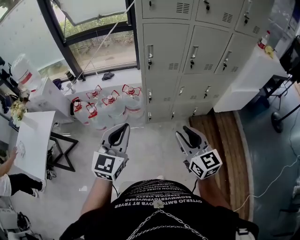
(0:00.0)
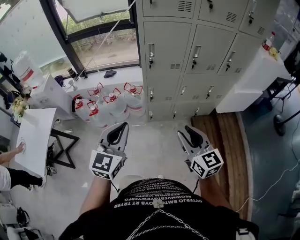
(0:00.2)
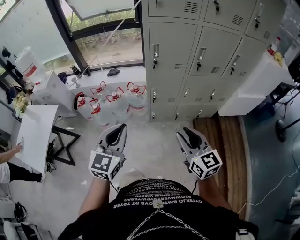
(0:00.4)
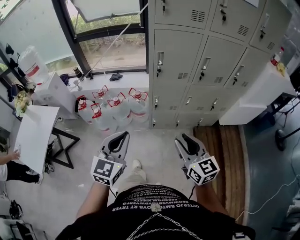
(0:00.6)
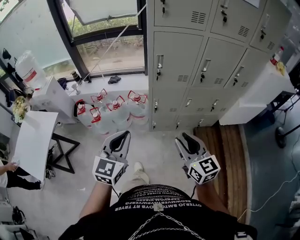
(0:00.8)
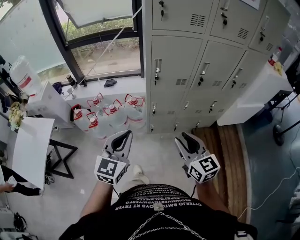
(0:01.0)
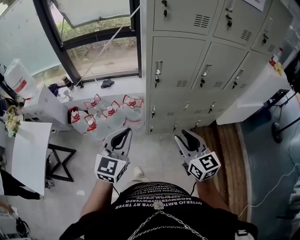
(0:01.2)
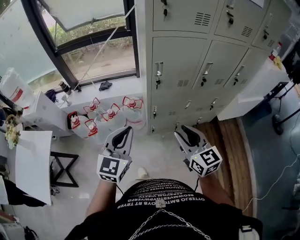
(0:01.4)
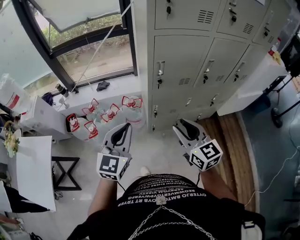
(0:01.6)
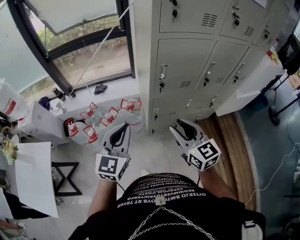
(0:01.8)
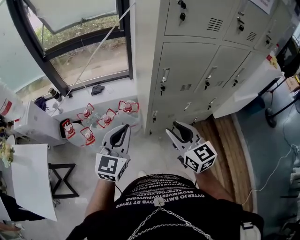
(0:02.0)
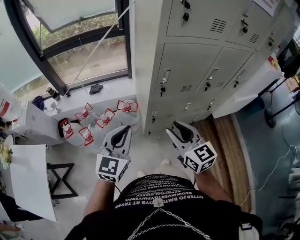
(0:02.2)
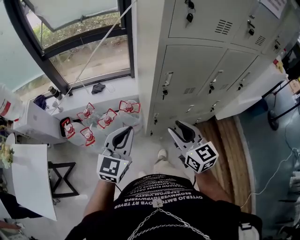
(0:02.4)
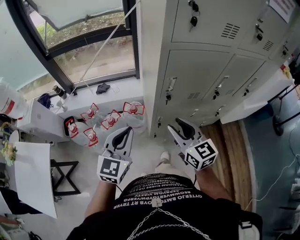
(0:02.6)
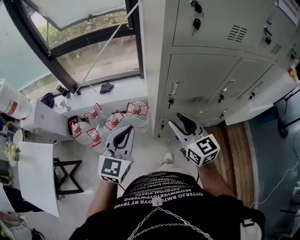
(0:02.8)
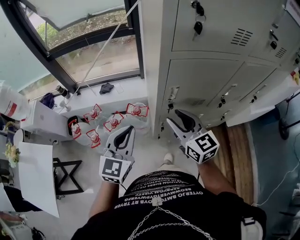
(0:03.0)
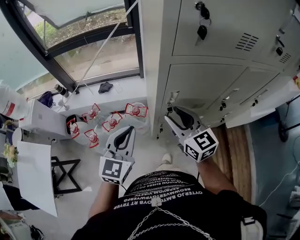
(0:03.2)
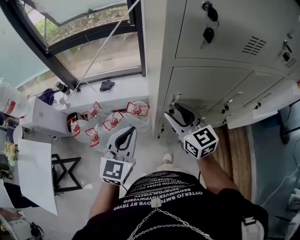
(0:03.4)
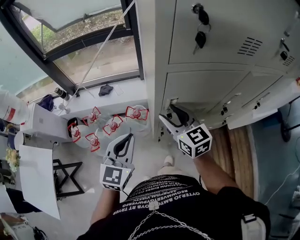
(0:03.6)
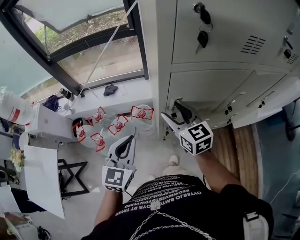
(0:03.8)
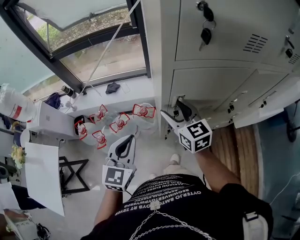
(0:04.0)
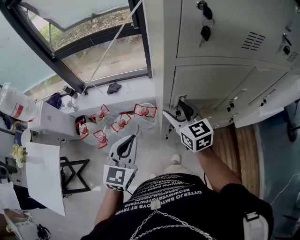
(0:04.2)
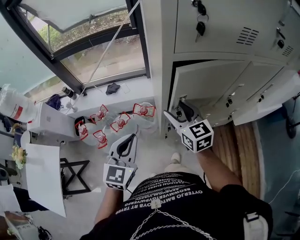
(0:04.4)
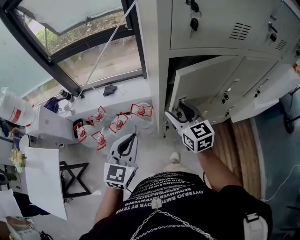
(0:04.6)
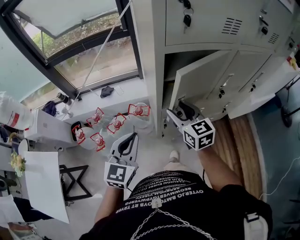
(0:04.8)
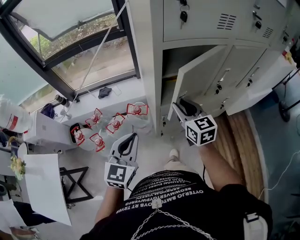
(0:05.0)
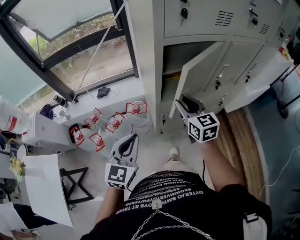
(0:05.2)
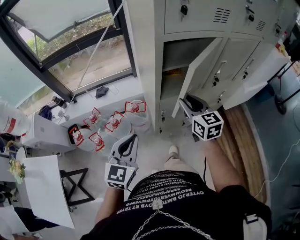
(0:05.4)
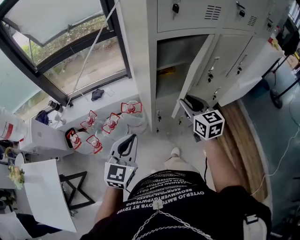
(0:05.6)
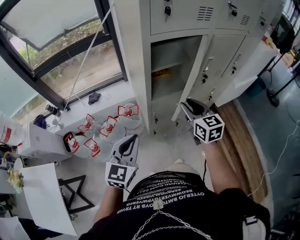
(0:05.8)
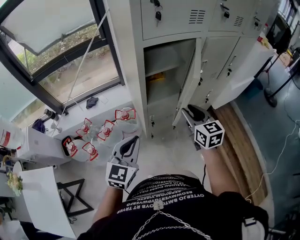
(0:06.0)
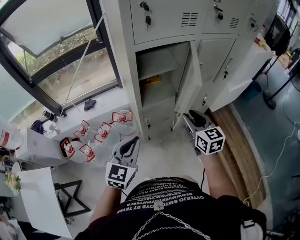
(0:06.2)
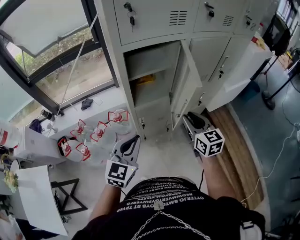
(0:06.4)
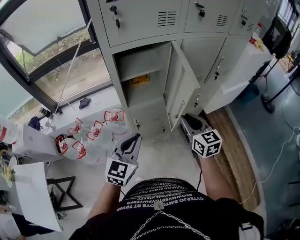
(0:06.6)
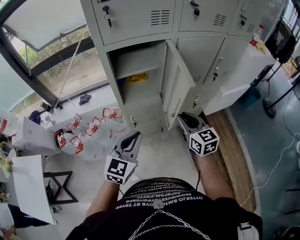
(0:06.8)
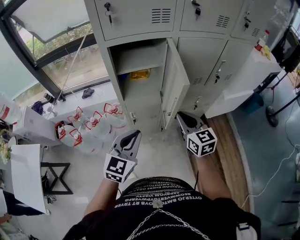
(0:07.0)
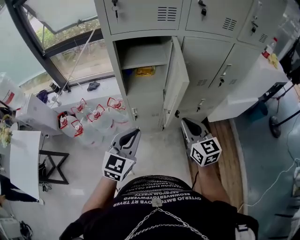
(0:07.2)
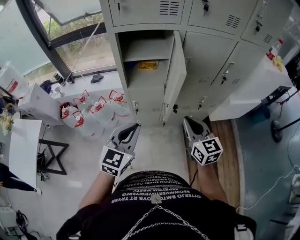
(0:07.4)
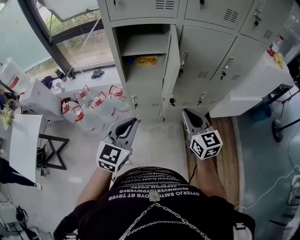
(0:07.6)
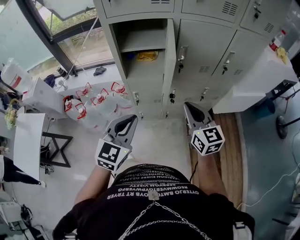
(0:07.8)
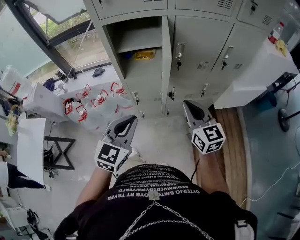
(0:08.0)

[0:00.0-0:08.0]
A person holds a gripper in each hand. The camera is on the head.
0:00.0 to 0:01.6: Both grippers move forward, some 25 cm.
0:01.6 to 0:03.2: The grippers both shift forward by roughly 20 cm.
0:03.2 to 0:04.8: The left gripper goes some 5 cm backward.
0:04.8 to 0:06.4: The right gripper shifts roughly 20 cm to the right and backward, and closes up. The left gripper goes about 15 cm to the right and backward.
0:06.4 to 0:08.0: The right gripper shifts roughly 15 cm to the right, and closes its fingers, while the left gripper travels to the right and backward by approximately 20 cm.

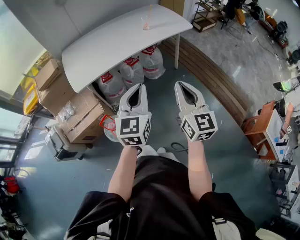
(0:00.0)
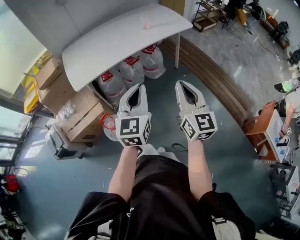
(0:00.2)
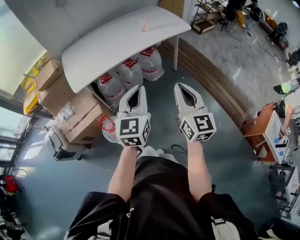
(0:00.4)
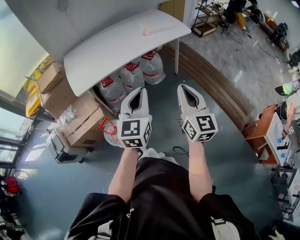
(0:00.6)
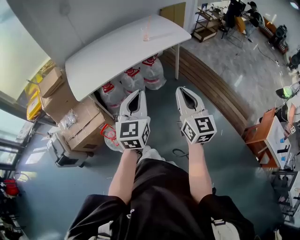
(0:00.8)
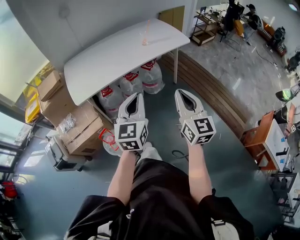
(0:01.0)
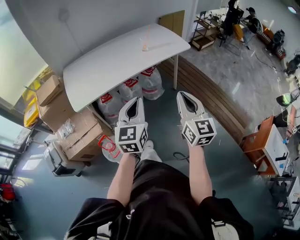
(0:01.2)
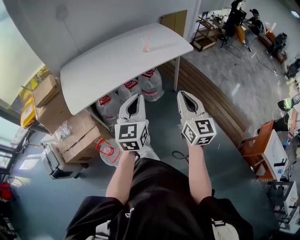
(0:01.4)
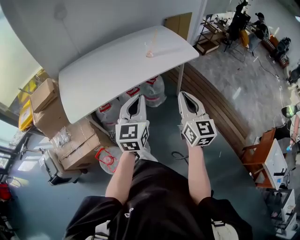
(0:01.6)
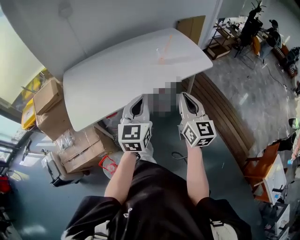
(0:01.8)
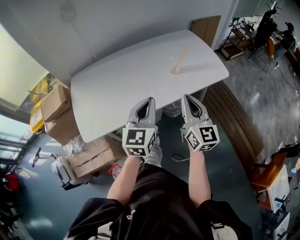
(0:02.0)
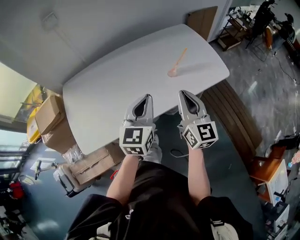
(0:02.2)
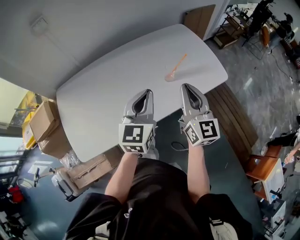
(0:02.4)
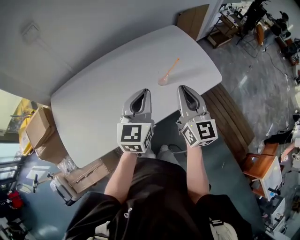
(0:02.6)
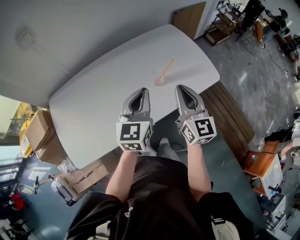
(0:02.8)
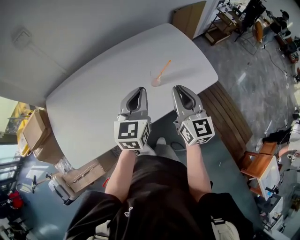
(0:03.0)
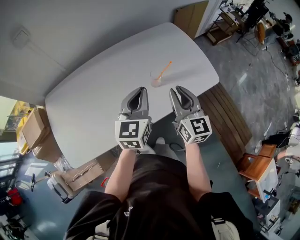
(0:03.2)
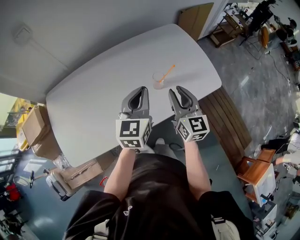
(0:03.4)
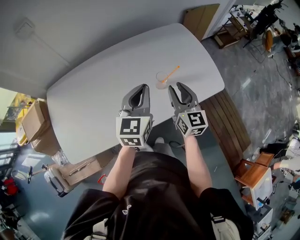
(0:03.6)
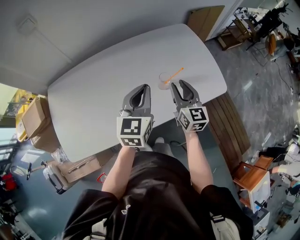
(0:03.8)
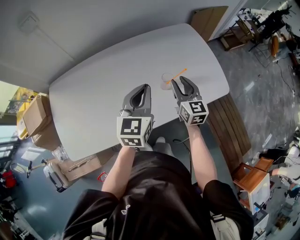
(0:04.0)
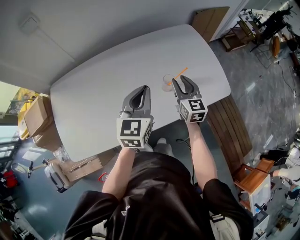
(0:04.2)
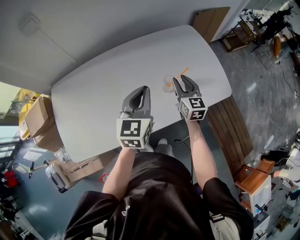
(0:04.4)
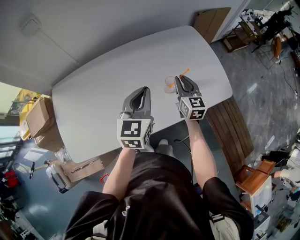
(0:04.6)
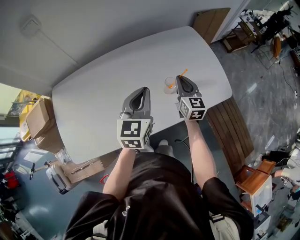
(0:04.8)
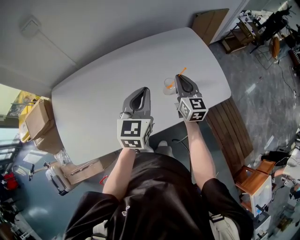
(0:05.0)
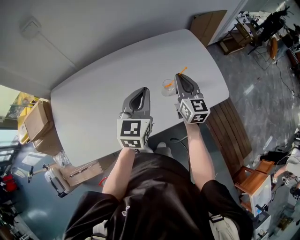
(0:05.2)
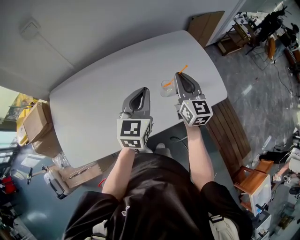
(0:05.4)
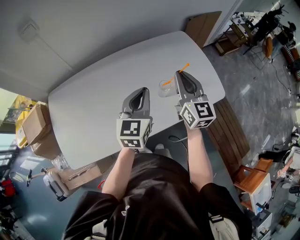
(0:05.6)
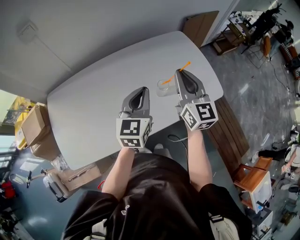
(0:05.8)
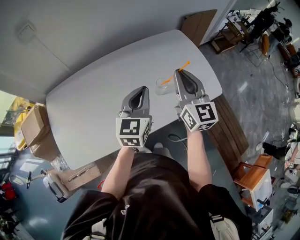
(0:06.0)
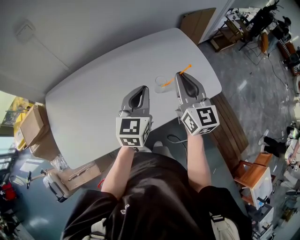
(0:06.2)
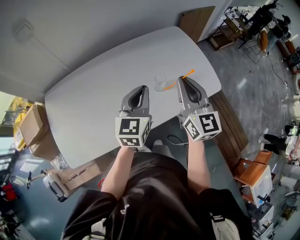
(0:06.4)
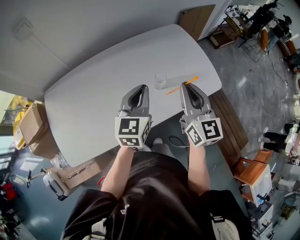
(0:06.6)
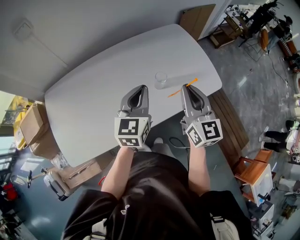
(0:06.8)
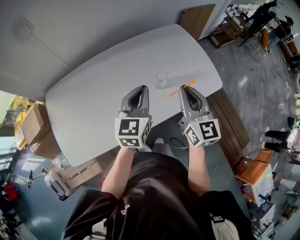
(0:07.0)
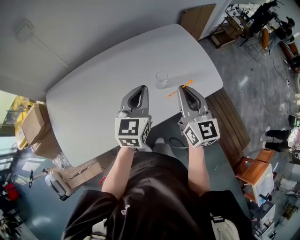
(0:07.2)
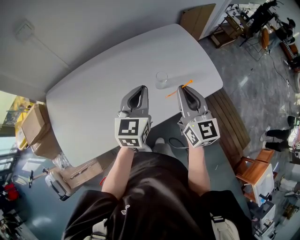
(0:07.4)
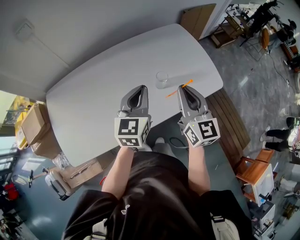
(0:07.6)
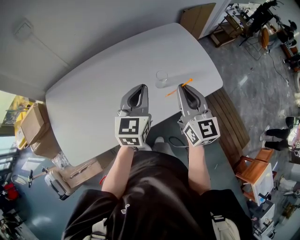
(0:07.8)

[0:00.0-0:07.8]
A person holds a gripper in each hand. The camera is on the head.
0:00.0 to 0:01.6: The two grippers go some 20 cm forward.
0:01.6 to 0:03.2: The two grippers travel together, forward, some 40 cm.
0:03.2 to 0:04.6: The right gripper heads forward and downward, covering some 15 cm, while the left gripper shifts by some 5 cm.
0:04.6 to 0:06.2: The right gripper goes some 15 cm upward.
0:06.2 to 0:07.8: The right gripper heads backward, covering roughly 5 cm.

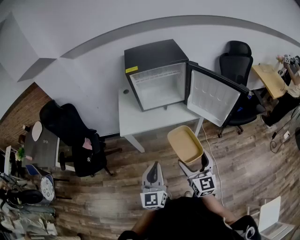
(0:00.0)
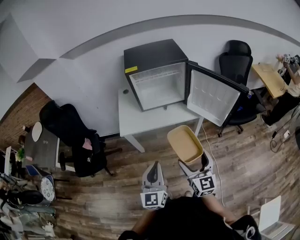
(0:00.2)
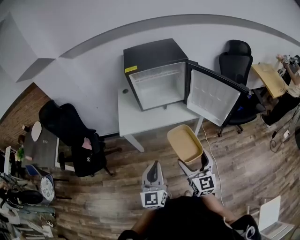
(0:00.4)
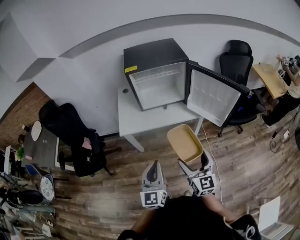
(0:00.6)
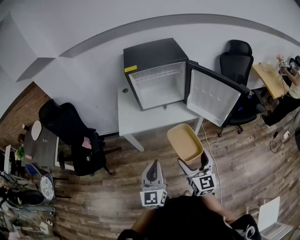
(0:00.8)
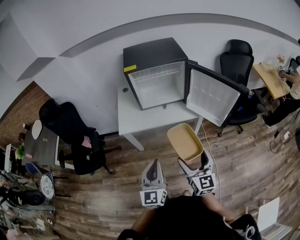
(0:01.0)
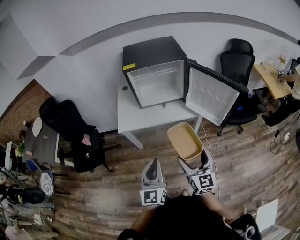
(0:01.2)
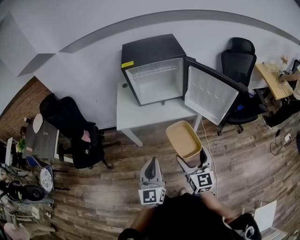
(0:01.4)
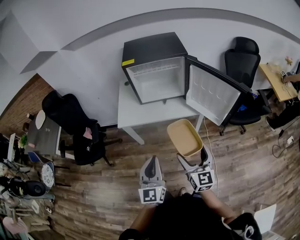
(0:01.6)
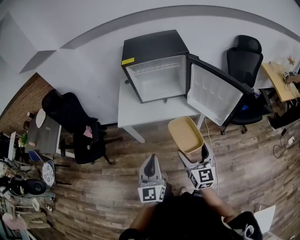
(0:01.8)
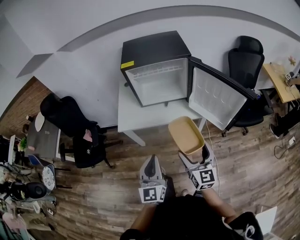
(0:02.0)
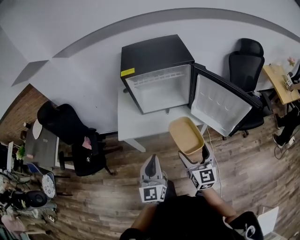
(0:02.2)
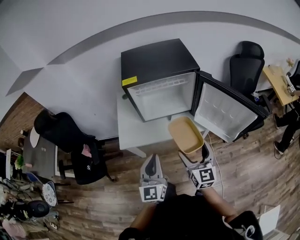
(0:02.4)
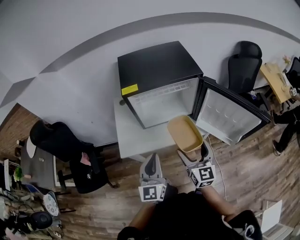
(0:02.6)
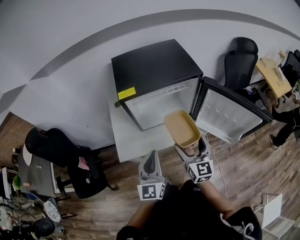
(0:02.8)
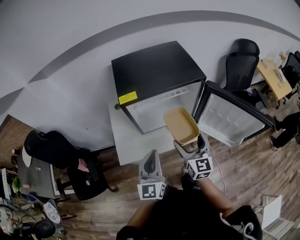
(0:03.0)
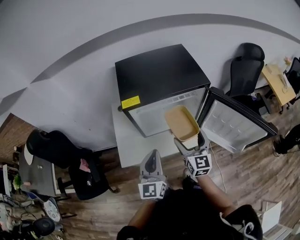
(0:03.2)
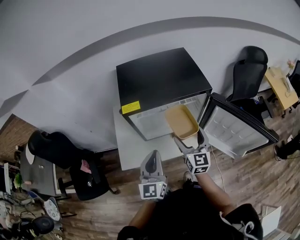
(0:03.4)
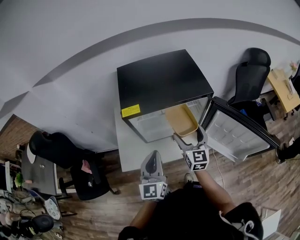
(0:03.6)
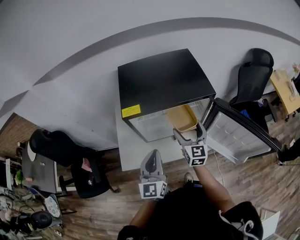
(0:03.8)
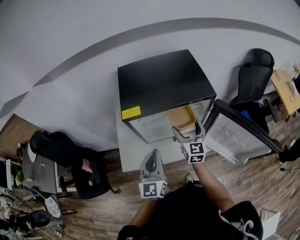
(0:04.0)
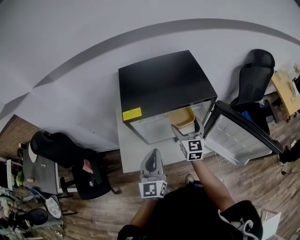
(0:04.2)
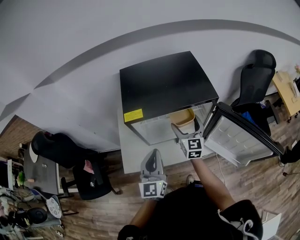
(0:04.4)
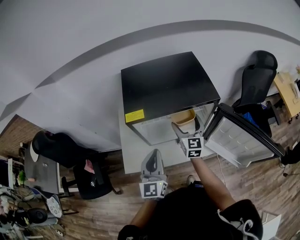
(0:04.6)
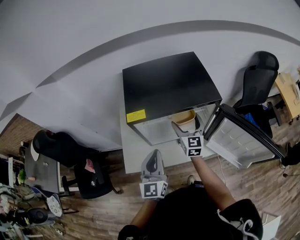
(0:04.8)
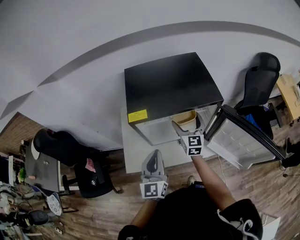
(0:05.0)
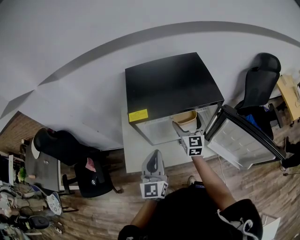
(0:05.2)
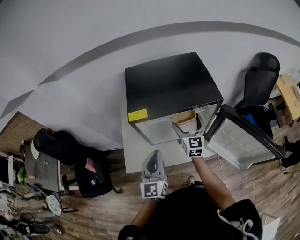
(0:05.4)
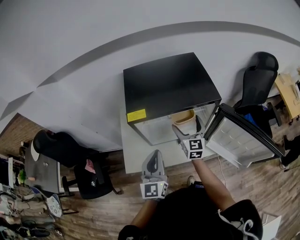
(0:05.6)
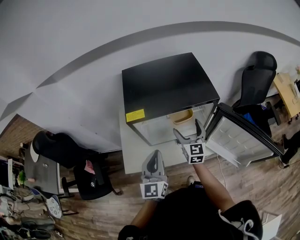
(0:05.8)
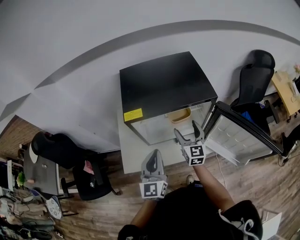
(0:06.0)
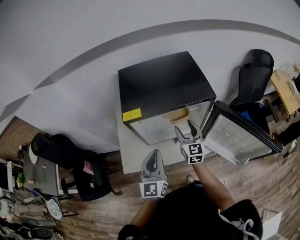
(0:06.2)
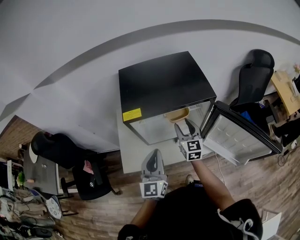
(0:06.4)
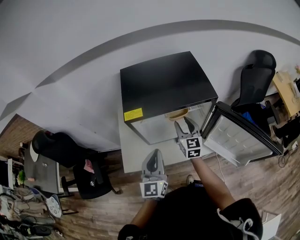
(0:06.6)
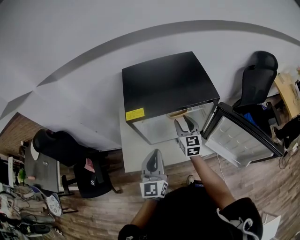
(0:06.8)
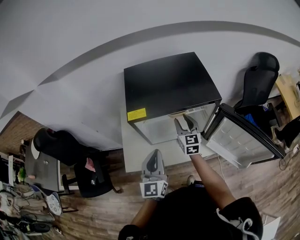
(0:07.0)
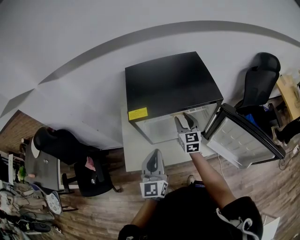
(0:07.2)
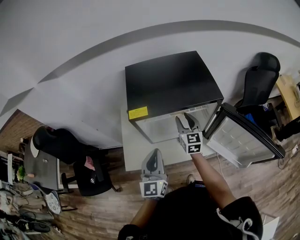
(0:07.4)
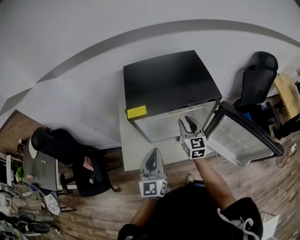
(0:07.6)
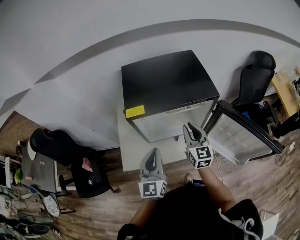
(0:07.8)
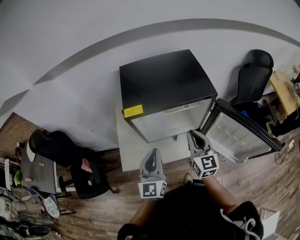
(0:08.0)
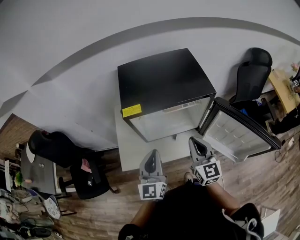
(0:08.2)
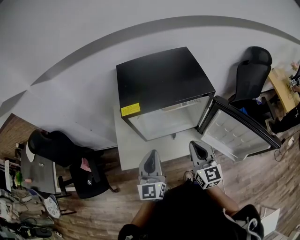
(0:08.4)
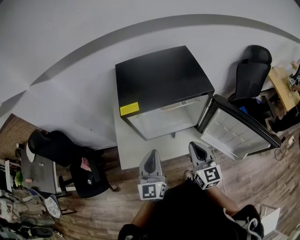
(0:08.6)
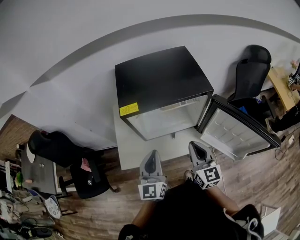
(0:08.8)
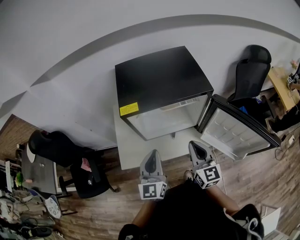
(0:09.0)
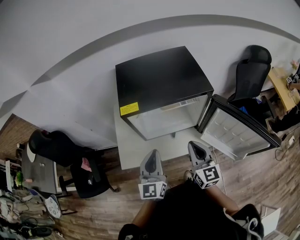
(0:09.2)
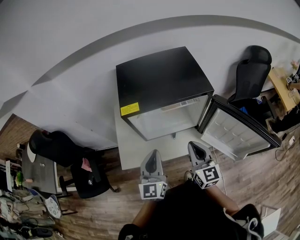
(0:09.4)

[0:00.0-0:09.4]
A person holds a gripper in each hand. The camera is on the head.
0:00.0 to 0:01.6: Both grippers travel together to the right, approximately 5 cm.
0:01.6 to 0:03.2: The two grippers go roughly 35 cm forward.
0:03.2 to 0:04.8: The right gripper moves forward, roughly 15 cm. The left gripper travels forward by about 5 cm.
0:04.8 to 0:06.2: The right gripper closes its fingers.
0:06.2 to 0:07.8: The right gripper closes its fingers.
0:07.8 to 0:09.4: The right gripper is displaced backward by roughly 10 cm.
